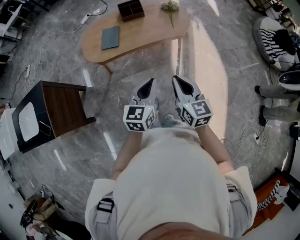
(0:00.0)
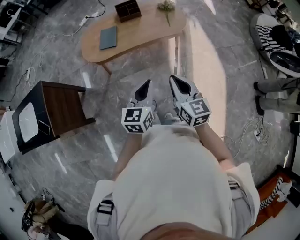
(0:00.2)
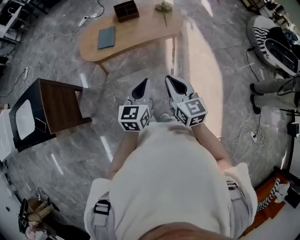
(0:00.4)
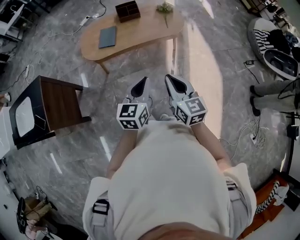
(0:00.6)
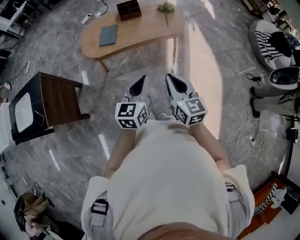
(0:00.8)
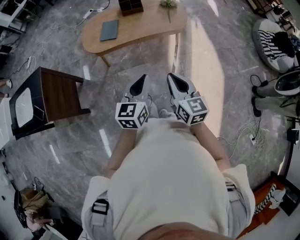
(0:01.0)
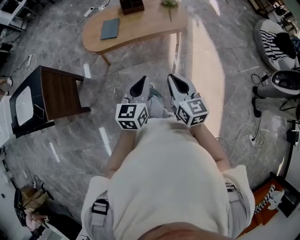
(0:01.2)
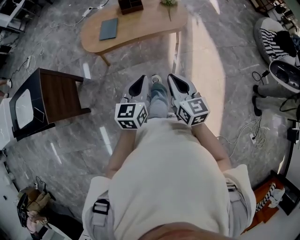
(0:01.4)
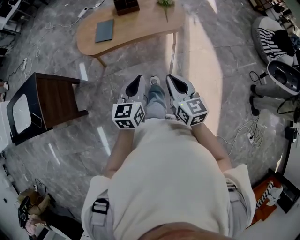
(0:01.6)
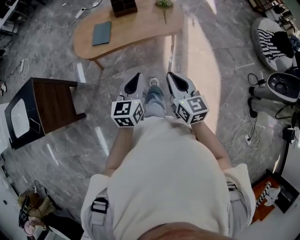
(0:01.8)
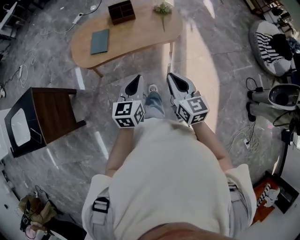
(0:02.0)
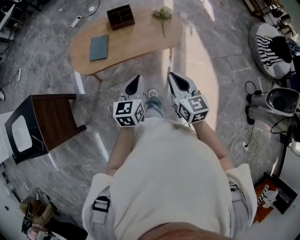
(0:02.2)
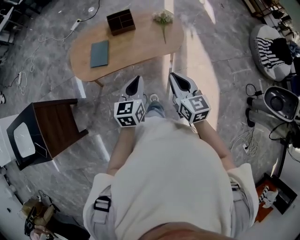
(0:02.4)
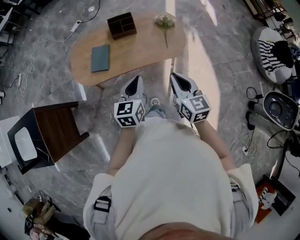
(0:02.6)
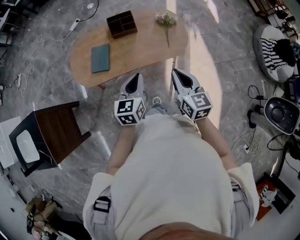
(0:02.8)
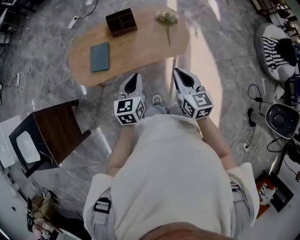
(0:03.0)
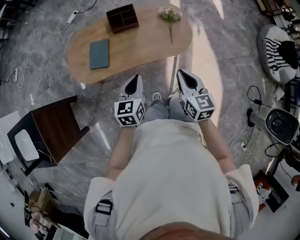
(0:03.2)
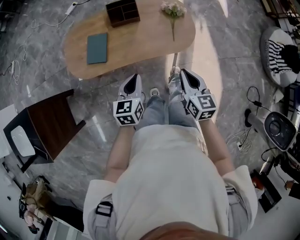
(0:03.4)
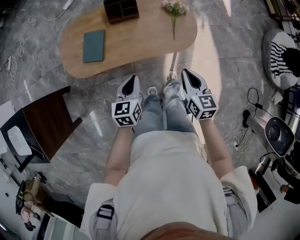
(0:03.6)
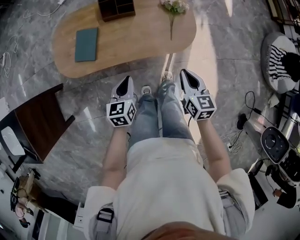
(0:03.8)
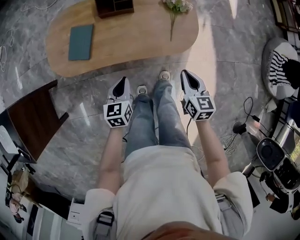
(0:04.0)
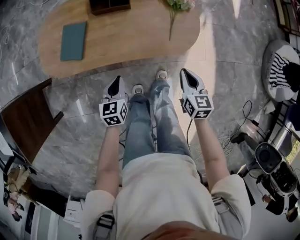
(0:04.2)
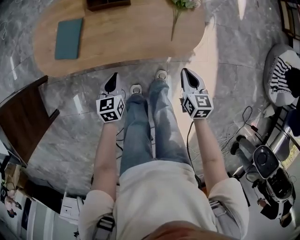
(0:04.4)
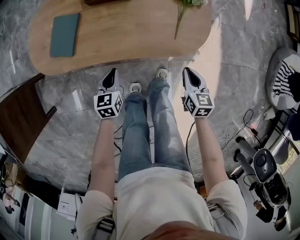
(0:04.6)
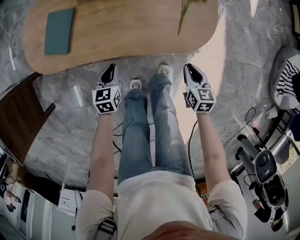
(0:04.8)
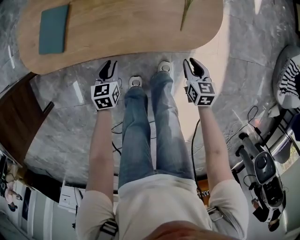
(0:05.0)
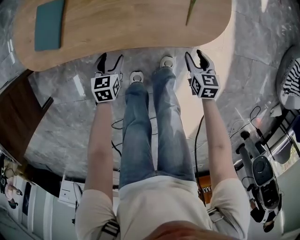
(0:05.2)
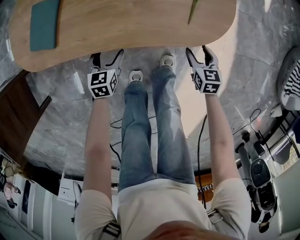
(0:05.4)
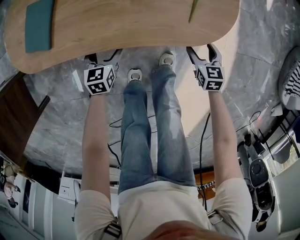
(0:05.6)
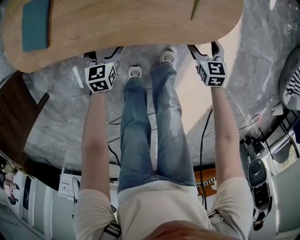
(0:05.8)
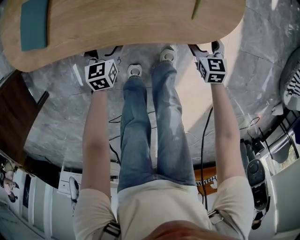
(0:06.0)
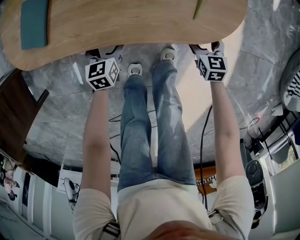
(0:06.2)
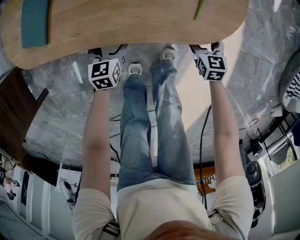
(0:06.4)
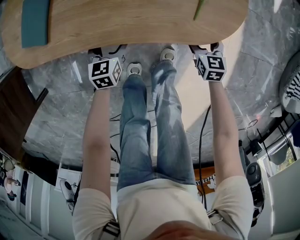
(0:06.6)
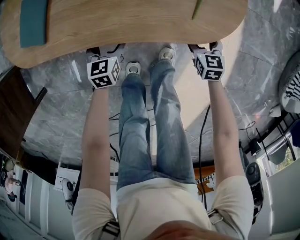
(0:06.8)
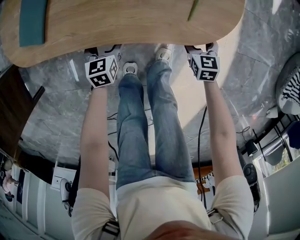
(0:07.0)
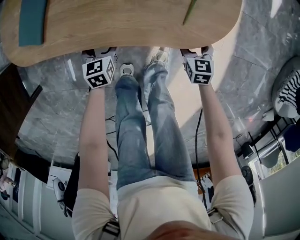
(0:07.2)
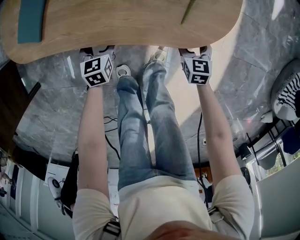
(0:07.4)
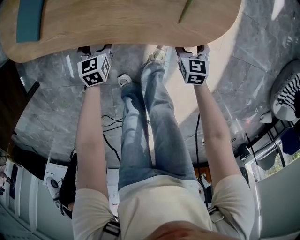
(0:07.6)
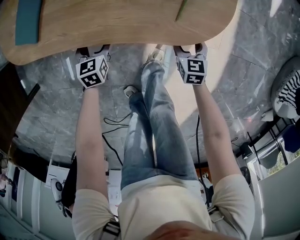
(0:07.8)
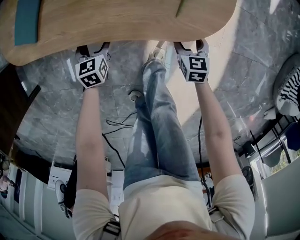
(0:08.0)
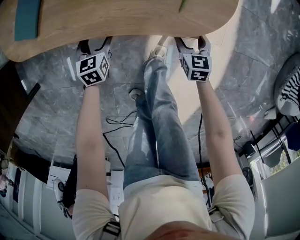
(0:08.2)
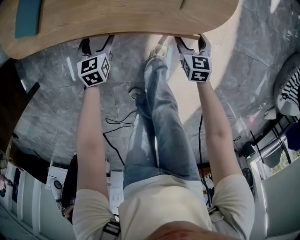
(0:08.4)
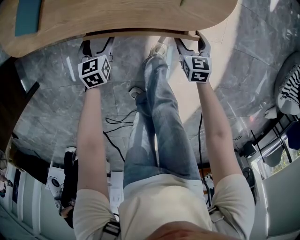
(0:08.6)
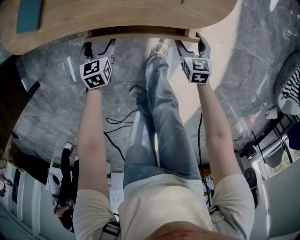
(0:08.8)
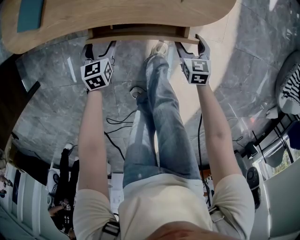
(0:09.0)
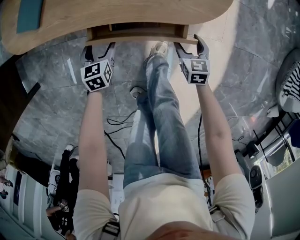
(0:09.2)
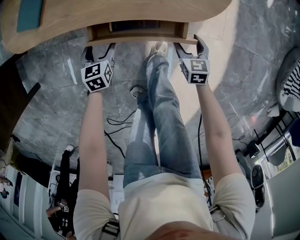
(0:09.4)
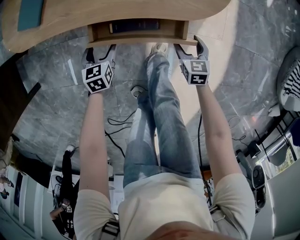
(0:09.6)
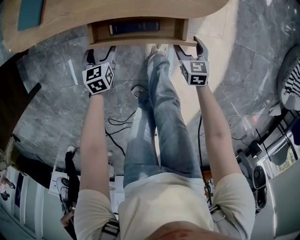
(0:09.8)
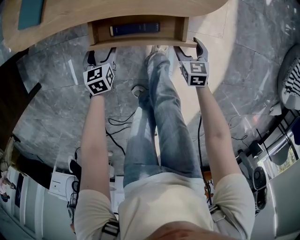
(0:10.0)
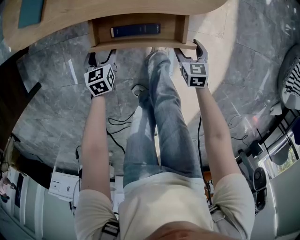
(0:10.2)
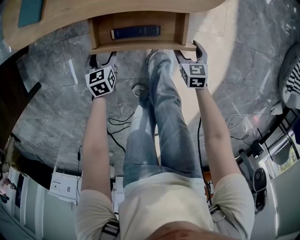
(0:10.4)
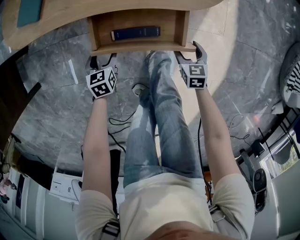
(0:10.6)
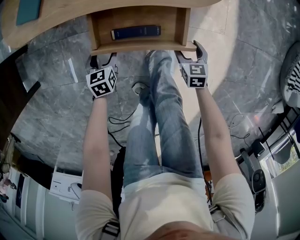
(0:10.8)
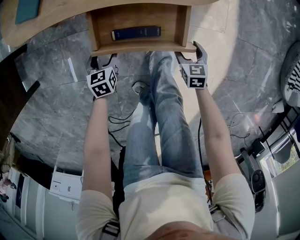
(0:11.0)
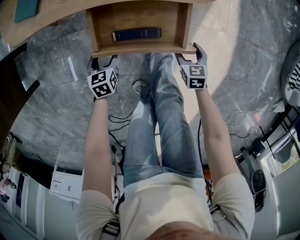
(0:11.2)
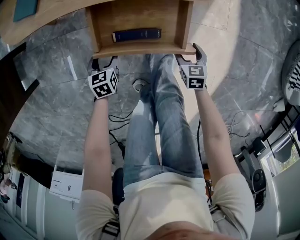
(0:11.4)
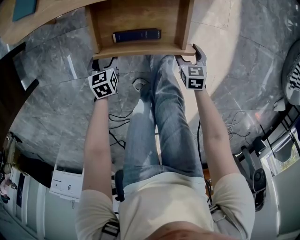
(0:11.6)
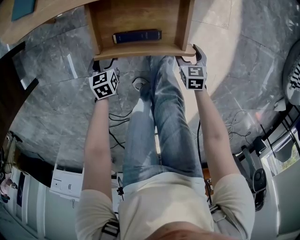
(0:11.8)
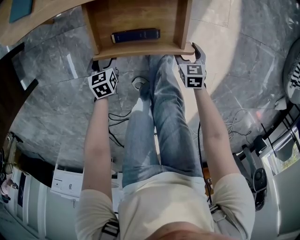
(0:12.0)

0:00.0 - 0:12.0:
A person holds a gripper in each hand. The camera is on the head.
0:00.0 - 0:01.6: The left gripper reaches roughly 10 cm backward, then returns.
0:01.6 - 0:03.0: Both grippers travel together forward, roughly 30 cm.
0:03.0 - 0:04.4: The right gripper moves downward and to the right, approximately 30 cm. Meanwhile the left gripper travels downward by approximately 30 cm, and turns by about 20 degrees.
0:04.4 - 0:06.0: Both grippers travel together downward, roughly 25 cm. The right gripper opens its fingers, while the left gripper opens.
0:06.0 - 0:07.6: There are only small adjustments of the grippers.
0:07.6 - 0:09.0: The grippers both shift backward by approximately 10 cm.
0:09.0 - 0:10.4: Both grippers move backward, about 10 cm.
0:10.4 - 0:12.0: The two grippers go some 10 cm backward.

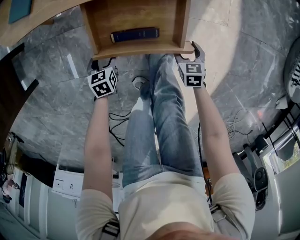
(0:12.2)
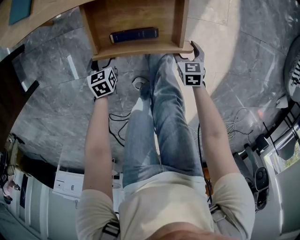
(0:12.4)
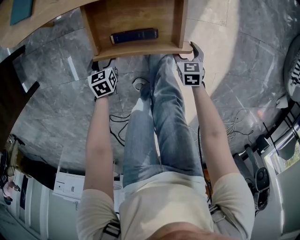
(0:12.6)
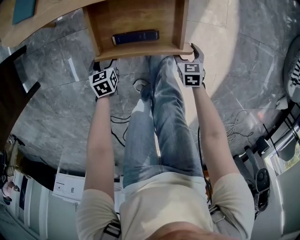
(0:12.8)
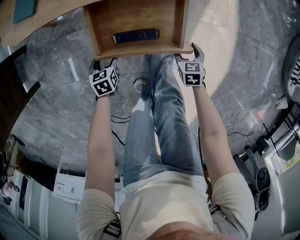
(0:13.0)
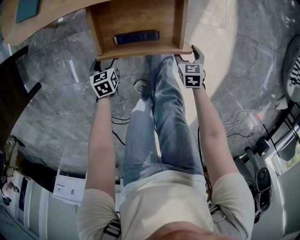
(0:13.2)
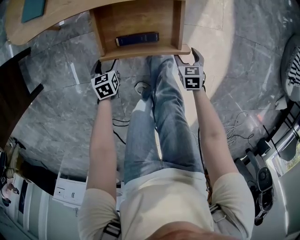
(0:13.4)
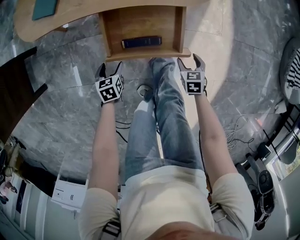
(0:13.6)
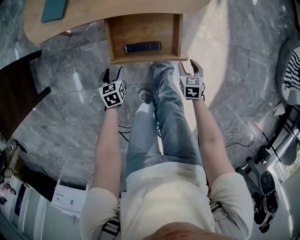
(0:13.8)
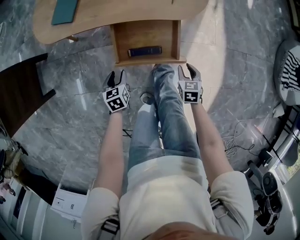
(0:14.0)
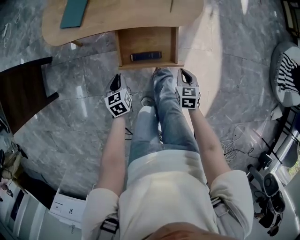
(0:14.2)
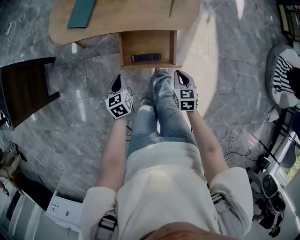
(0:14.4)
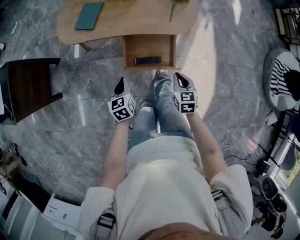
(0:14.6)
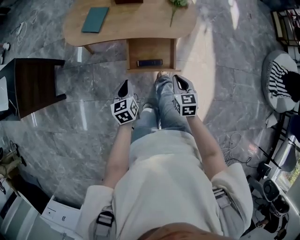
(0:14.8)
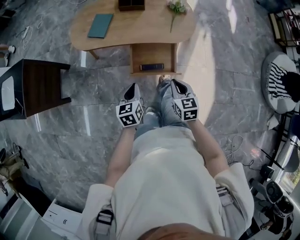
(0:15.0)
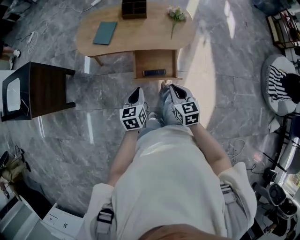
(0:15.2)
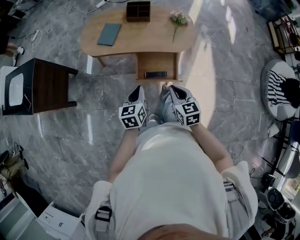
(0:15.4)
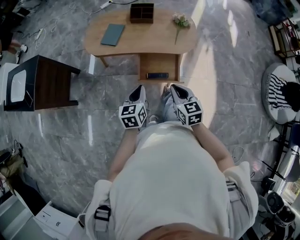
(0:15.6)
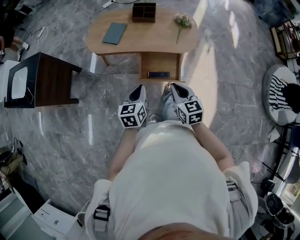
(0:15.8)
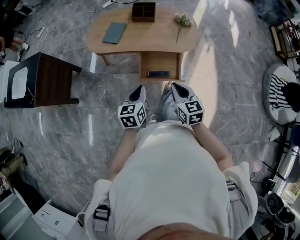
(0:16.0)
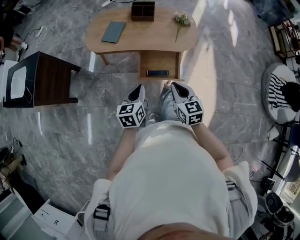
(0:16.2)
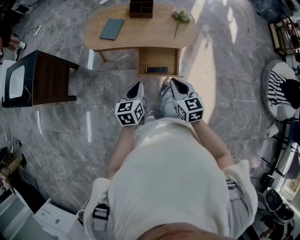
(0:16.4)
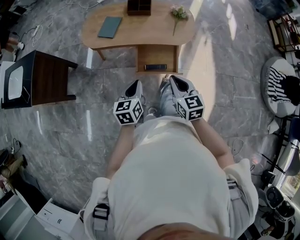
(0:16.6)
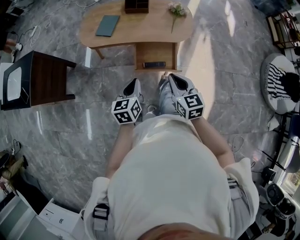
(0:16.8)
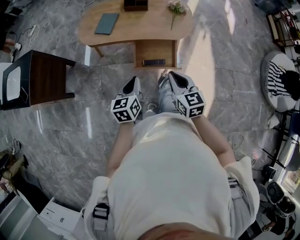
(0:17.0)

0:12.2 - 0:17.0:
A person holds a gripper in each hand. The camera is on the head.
0:12.2 - 0:13.8: The two grippers go approximately 10 cm upward.
0:13.8 - 0:15.4: Both grippers move upward, roughly 40 cm. The right gripper swivels approximately 30 degrees, and closes up. Meanwhile the left gripper rotates some 30 degrees, and closes up.
0:15.4 - 0:17.0: The right gripper travels upward by roughly 5 cm.

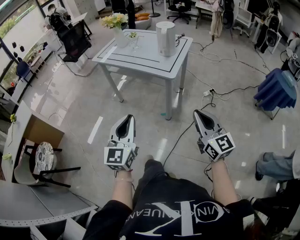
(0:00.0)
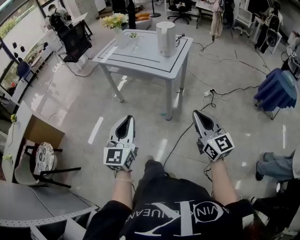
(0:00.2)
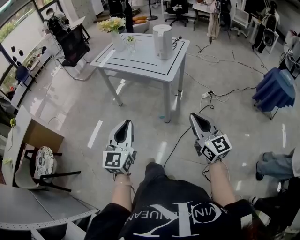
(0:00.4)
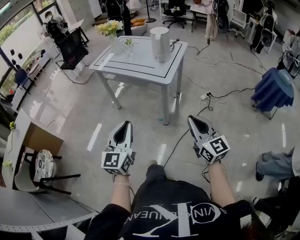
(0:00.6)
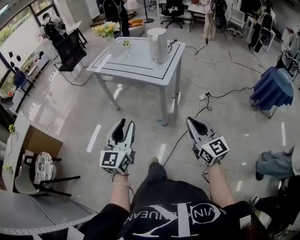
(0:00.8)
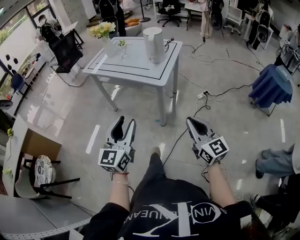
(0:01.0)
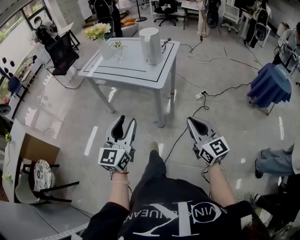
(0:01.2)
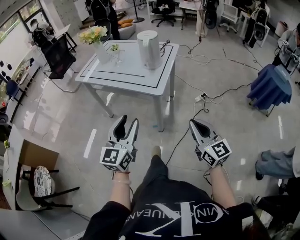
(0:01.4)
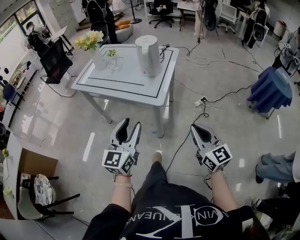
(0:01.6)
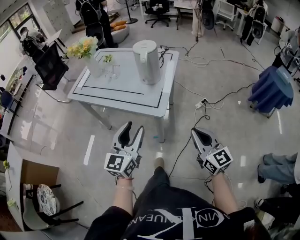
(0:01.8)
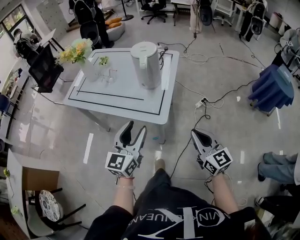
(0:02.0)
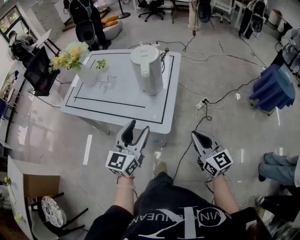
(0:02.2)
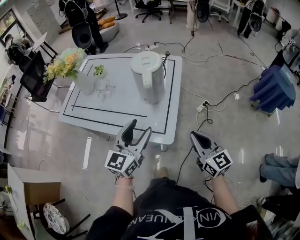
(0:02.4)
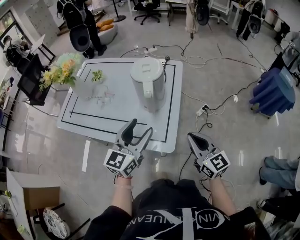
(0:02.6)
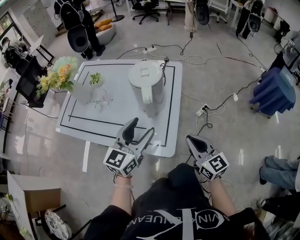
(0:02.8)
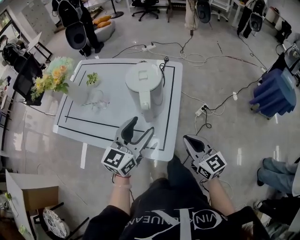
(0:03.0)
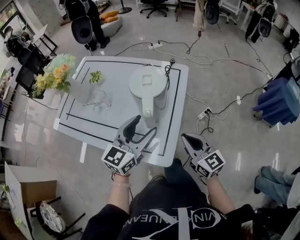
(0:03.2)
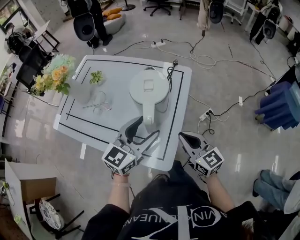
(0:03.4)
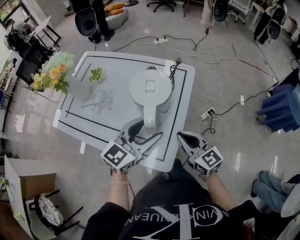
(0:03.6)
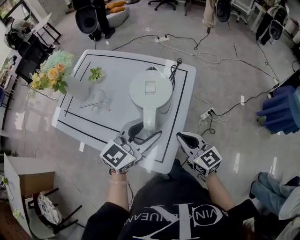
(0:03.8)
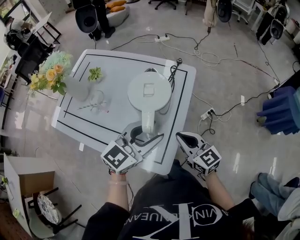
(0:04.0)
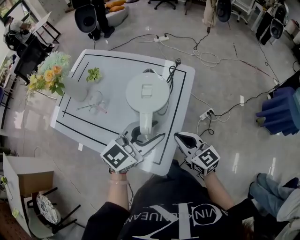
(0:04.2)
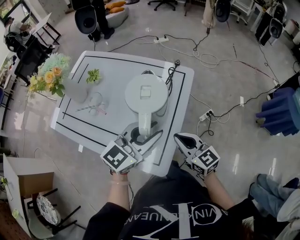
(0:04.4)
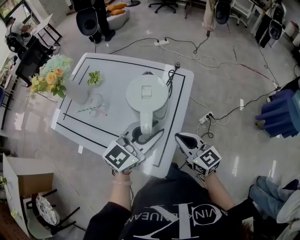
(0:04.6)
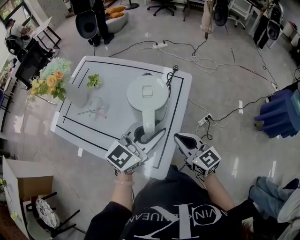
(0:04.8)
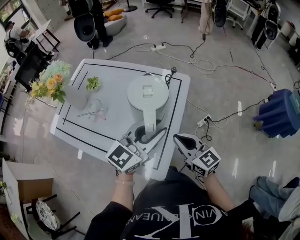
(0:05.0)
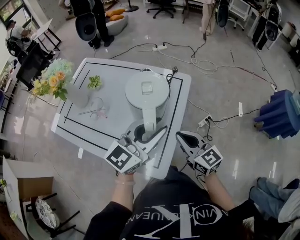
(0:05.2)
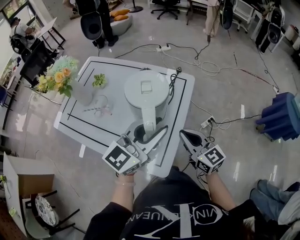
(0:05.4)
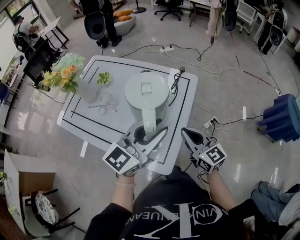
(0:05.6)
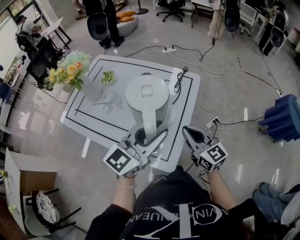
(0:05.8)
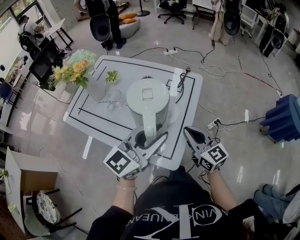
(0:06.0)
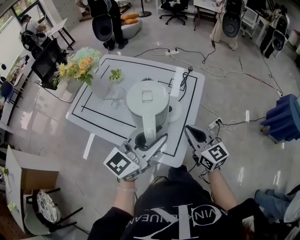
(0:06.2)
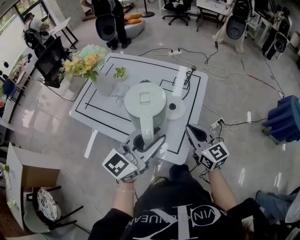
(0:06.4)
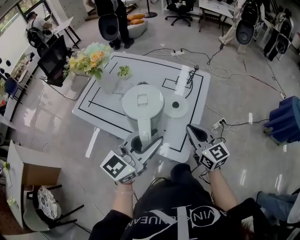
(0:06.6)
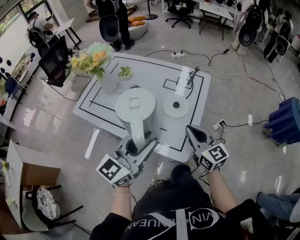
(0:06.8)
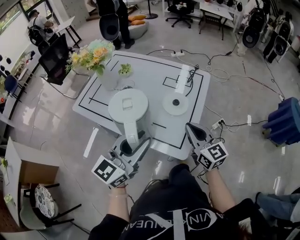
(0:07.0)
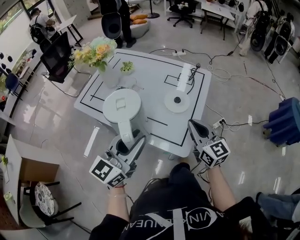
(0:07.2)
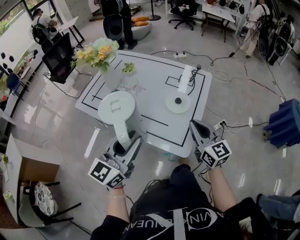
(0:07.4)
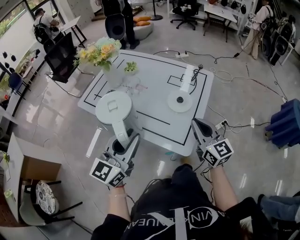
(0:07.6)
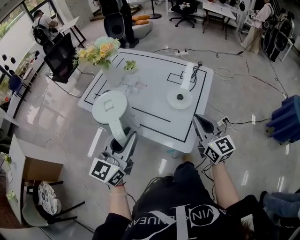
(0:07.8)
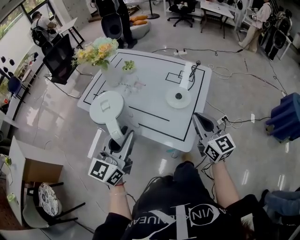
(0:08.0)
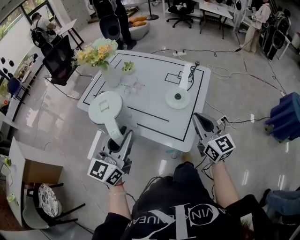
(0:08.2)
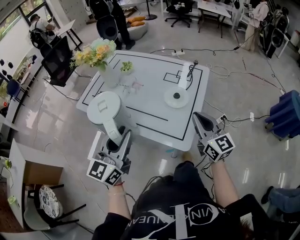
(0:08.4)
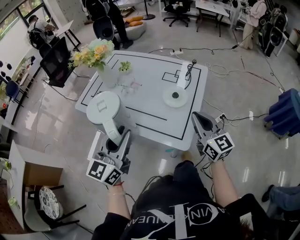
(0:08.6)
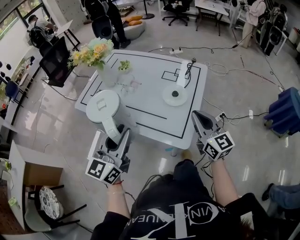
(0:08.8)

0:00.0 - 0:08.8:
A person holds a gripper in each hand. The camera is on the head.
0:00.0 - 0:01.4: Both grippers move forward and to the right, roughly 15 cm. The left gripper opens its fingers.
0:01.4 - 0:03.0: The two grippers go some 40 cm forward. The left gripper rotates roughly 20 degrees, and opens its fingers.
0:03.0 - 0:04.4: The right gripper is displaced forward by about 10 cm. Meanwhile the left gripper shifts about 10 cm forward and to the right, and closes up.
0:04.4 - 0:05.8: Both grippers travel together upward, about 5 cm.
0:05.8 - 0:07.4: The right gripper is displaced backward by about 5 cm. The left gripper goes approximately 20 cm to the left and backward.
0:07.4 - 0:08.8: The grippers stay close to where they were, moving slightly.
